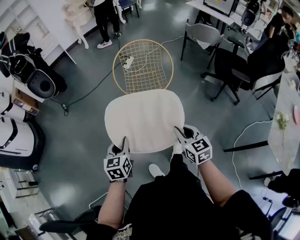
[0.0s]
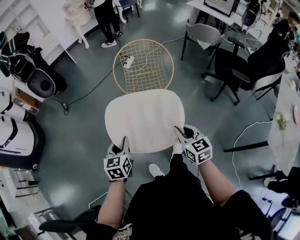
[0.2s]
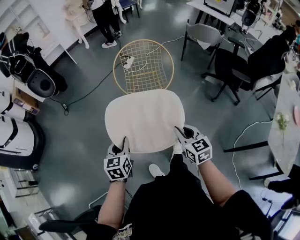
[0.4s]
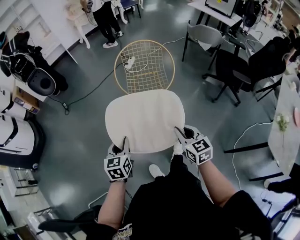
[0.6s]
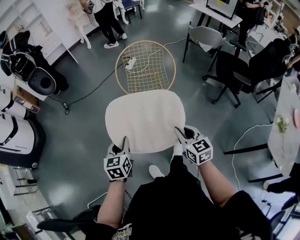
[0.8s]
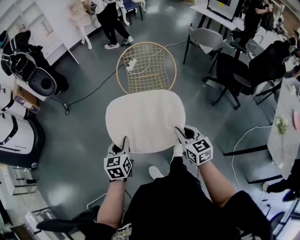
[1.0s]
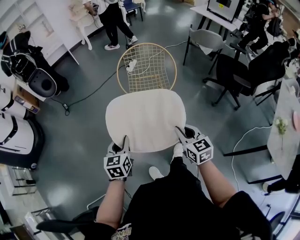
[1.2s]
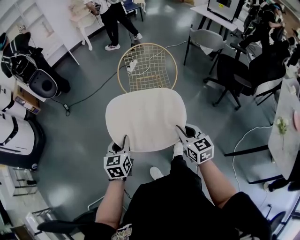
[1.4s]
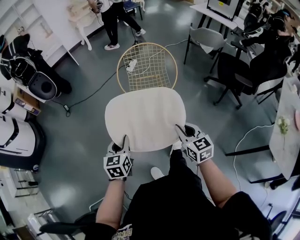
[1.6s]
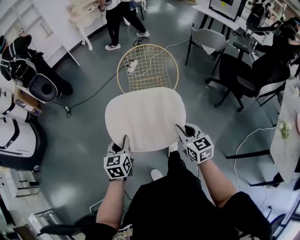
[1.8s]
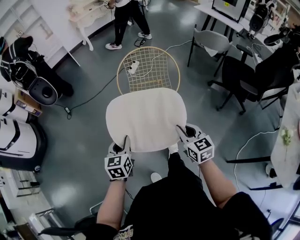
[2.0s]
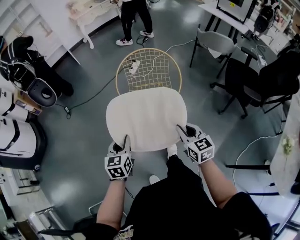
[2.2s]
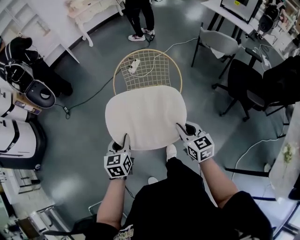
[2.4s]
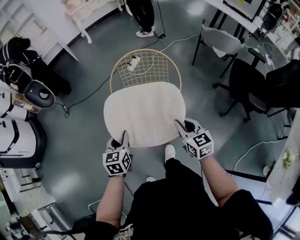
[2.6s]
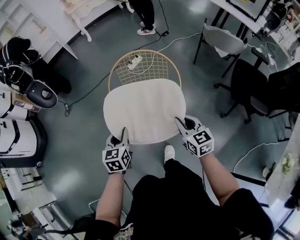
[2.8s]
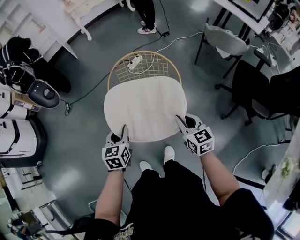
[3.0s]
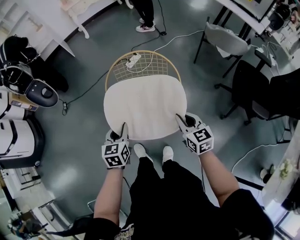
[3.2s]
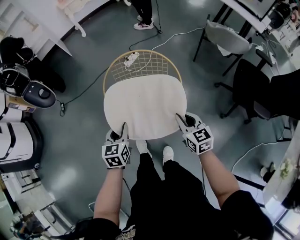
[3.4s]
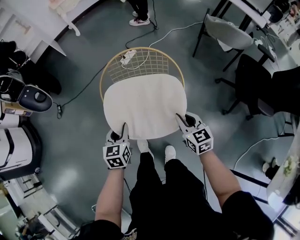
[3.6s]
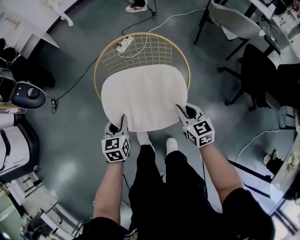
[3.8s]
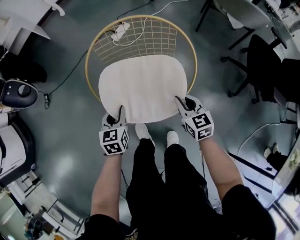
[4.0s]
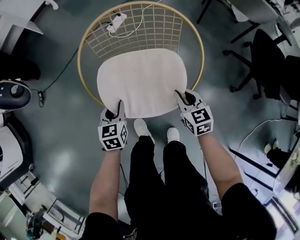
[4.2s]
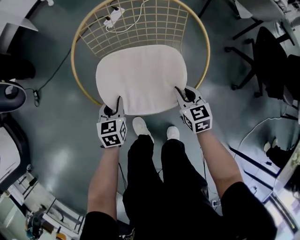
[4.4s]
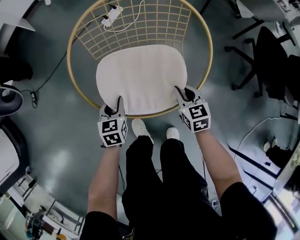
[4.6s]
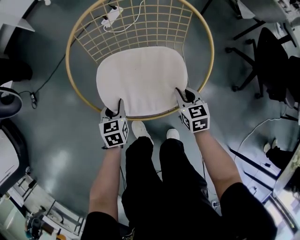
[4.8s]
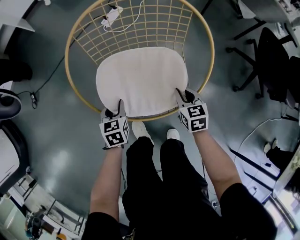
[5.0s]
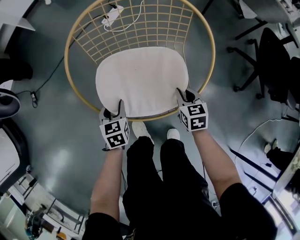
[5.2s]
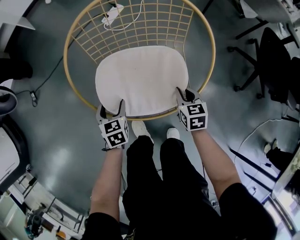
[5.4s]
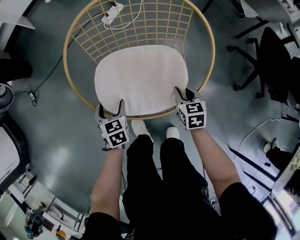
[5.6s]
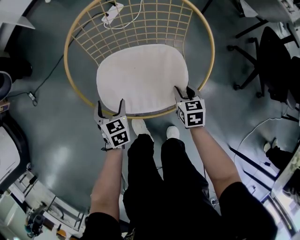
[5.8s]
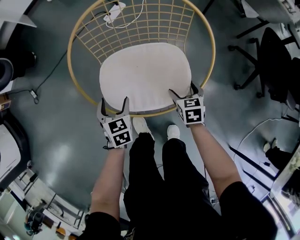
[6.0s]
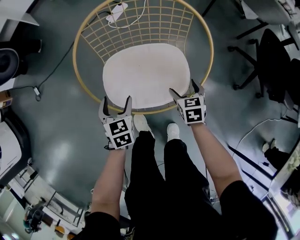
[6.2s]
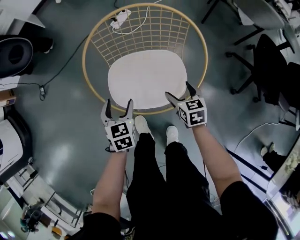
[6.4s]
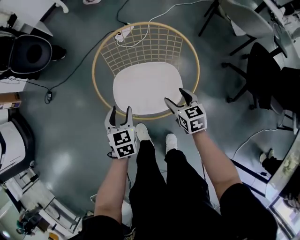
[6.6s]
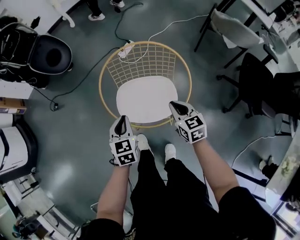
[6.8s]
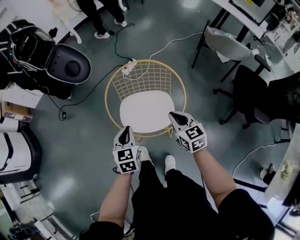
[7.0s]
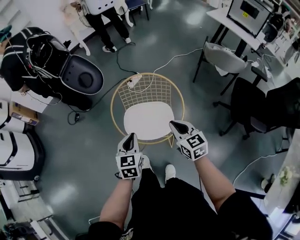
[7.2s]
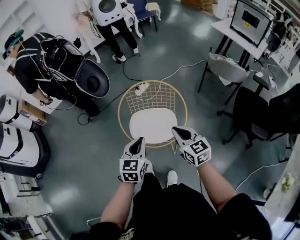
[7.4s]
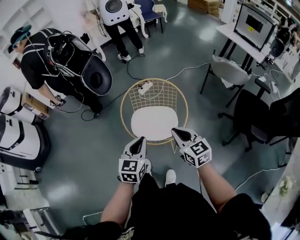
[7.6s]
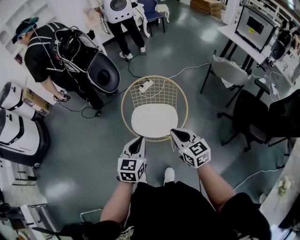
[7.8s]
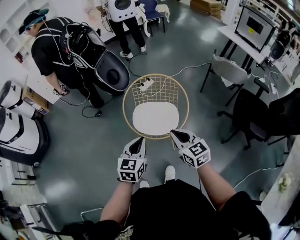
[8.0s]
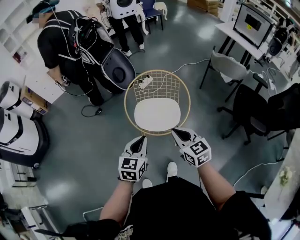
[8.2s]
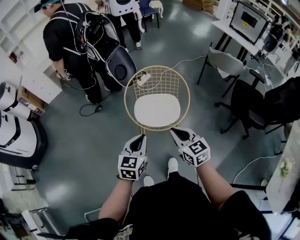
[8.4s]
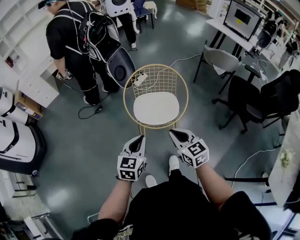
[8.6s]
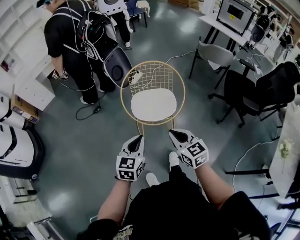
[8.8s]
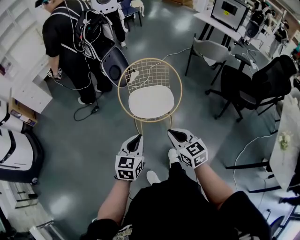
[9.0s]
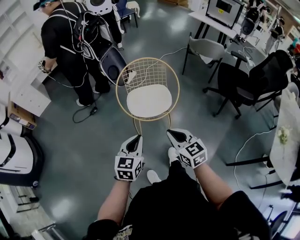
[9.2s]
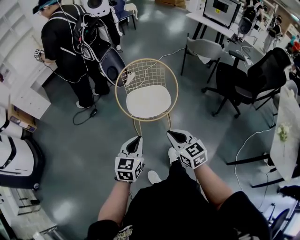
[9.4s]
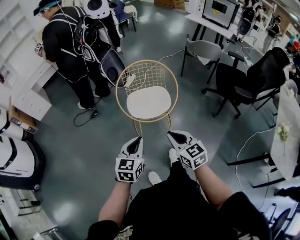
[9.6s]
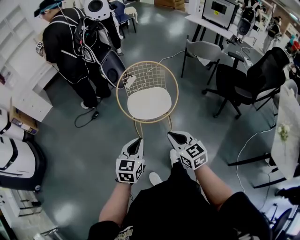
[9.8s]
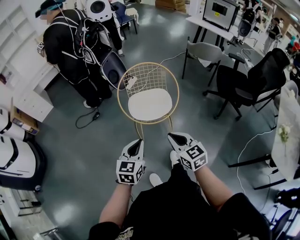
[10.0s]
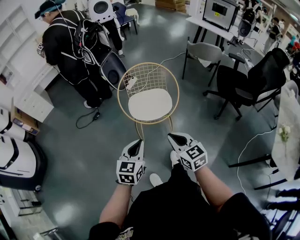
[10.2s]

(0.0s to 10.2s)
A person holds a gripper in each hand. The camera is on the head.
0.0s - 1.4s: The grippers stay close to where they were, moving slightly.
1.4s - 3.0s: The two grippers go roughly 35 cm forward and to the right.
3.0s - 4.4s: The grippers both shift downward and forward by some 35 cm.
4.4s - 5.8s: The left gripper opens its fingers; the right gripper travels downward by approximately 5 cm.
5.8s - 7.2s: Both grippers travel together upward, some 40 cm. The left gripper swivels roughly 20 degrees, and closes, while the right gripper turns by about 30 degrees, and opens, then closes once more.
7.2s - 8.8s: Both grippers travel together backward and to the left, roughly 25 cm.
8.8s - 10.2s: Both grippers move backward, roughly 5 cm.

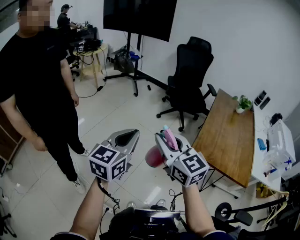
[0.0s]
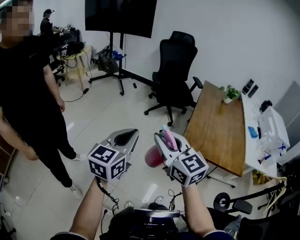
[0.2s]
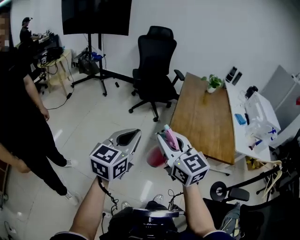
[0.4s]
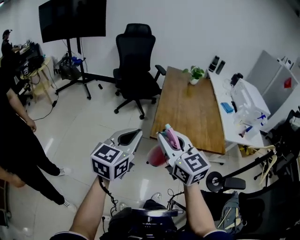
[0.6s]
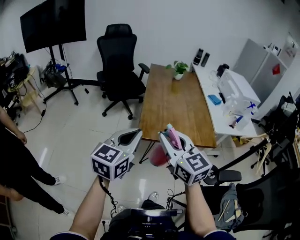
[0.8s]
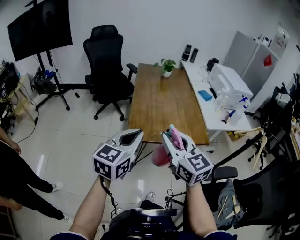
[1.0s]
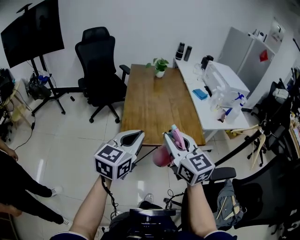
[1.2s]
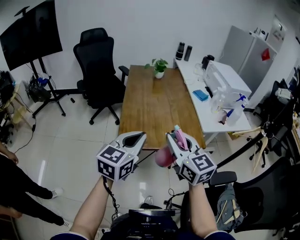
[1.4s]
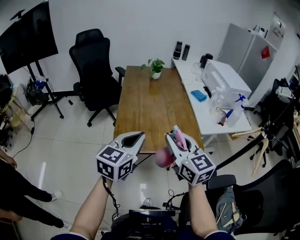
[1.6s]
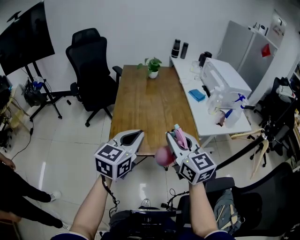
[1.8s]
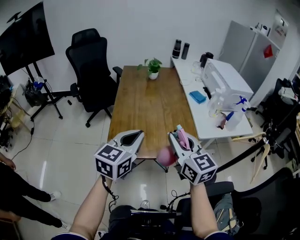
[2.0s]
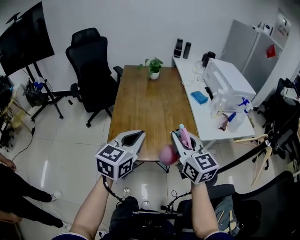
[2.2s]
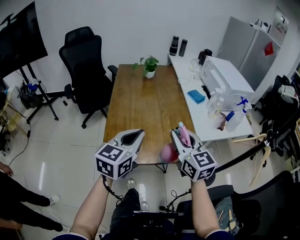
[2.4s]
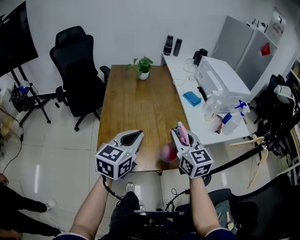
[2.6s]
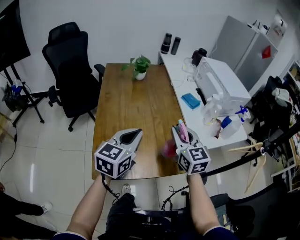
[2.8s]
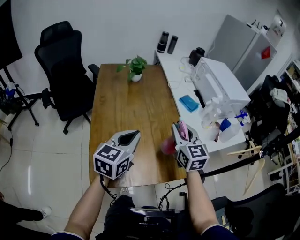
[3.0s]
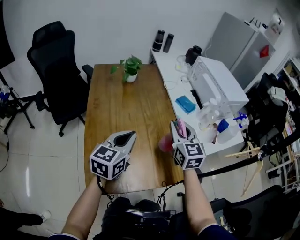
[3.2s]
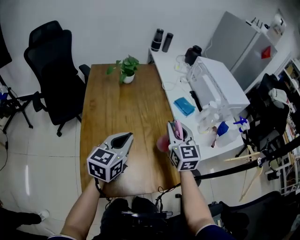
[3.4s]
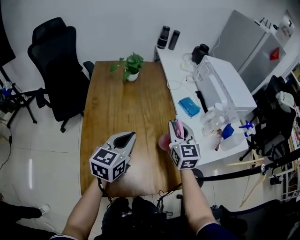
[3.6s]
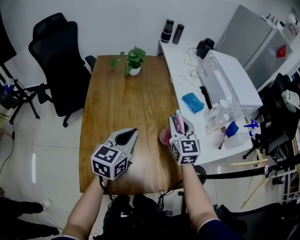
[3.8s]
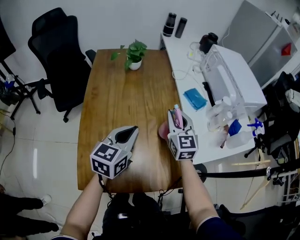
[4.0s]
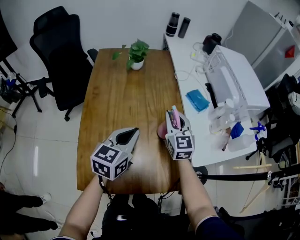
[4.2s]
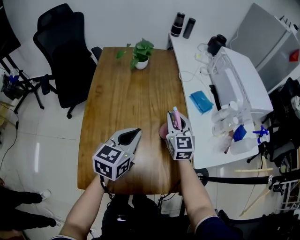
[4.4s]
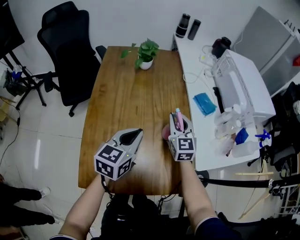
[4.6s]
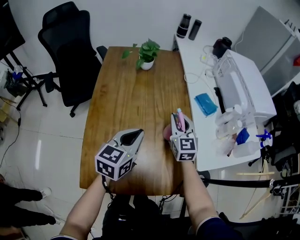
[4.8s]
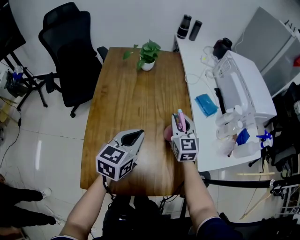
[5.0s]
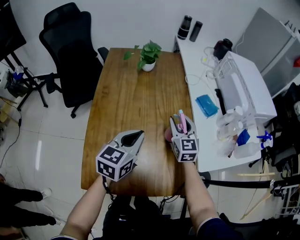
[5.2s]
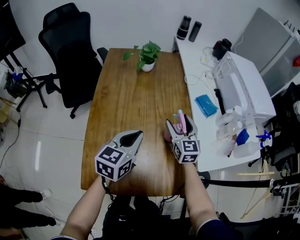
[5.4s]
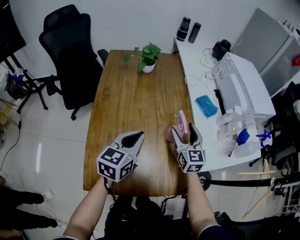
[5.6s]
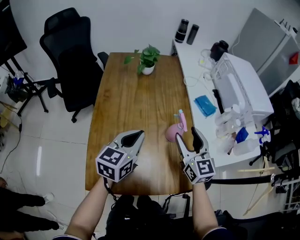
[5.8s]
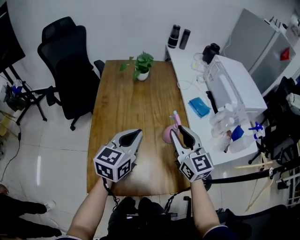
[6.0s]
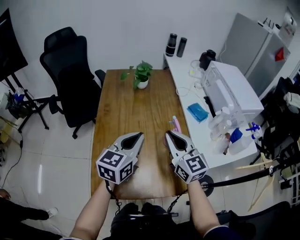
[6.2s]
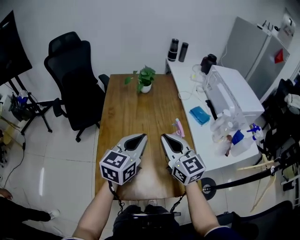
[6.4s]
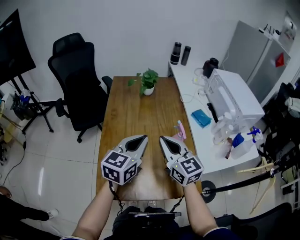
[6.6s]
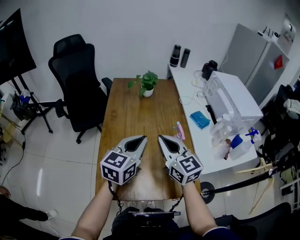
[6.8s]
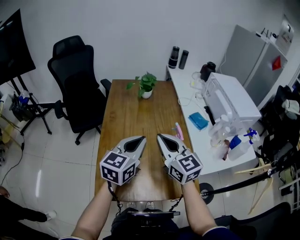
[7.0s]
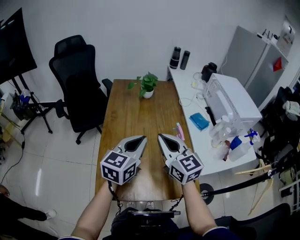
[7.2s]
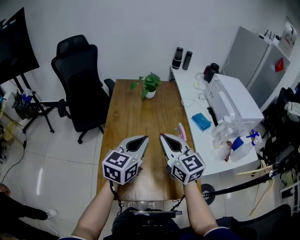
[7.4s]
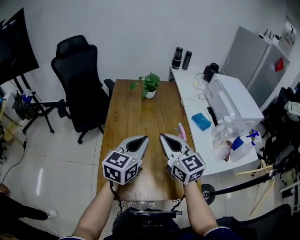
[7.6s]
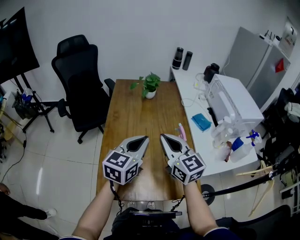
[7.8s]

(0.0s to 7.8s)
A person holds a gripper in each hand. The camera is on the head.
0.0s - 1.6s: The pair of grippers is taken about 50 cm. The left gripper turns by some 40 degrees, while the right gripper rotates about 40 degrees.
1.6s - 3.2s: Both grippers travel together forward, some 30 cm. The right gripper turns by about 20 degrees.
3.2s - 4.6s: The right gripper goes approximately 15 cm downward and forward. Meanwhile the left gripper goes approximately 10 cm downward and forward.
4.6s - 6.2s: The left gripper travels upward by about 10 cm. Meanwhile the right gripper heads backward and upward, covering approximately 15 cm, and opens, then closes again.
6.2s - 7.8s: The right gripper moves to the left, approximately 5 cm.

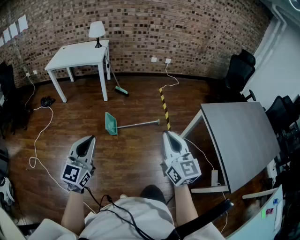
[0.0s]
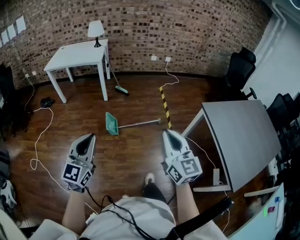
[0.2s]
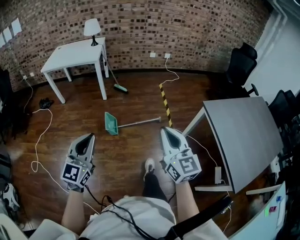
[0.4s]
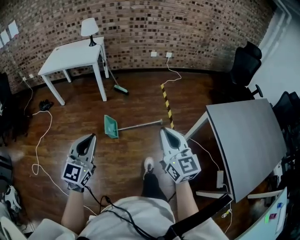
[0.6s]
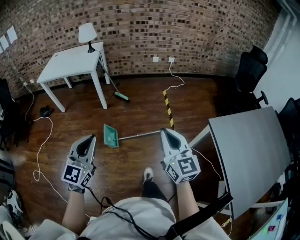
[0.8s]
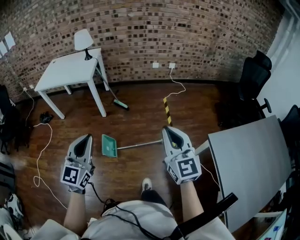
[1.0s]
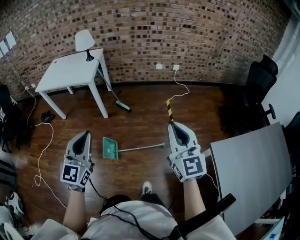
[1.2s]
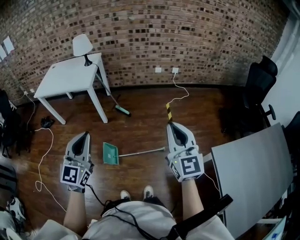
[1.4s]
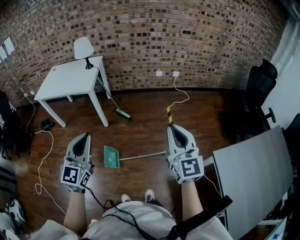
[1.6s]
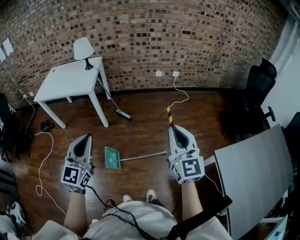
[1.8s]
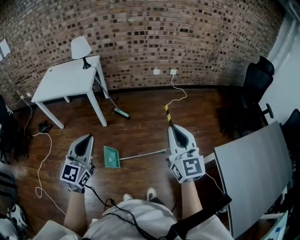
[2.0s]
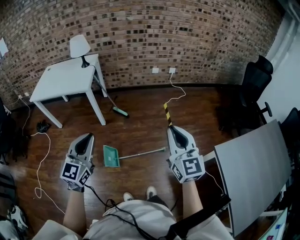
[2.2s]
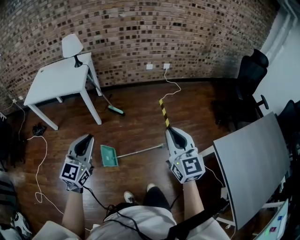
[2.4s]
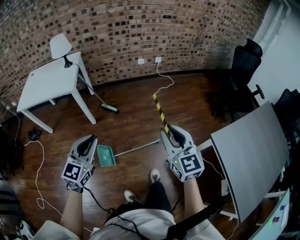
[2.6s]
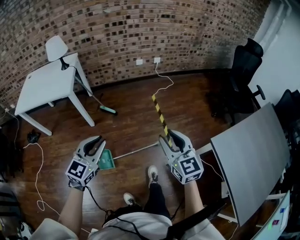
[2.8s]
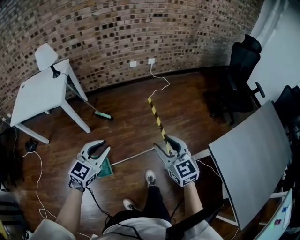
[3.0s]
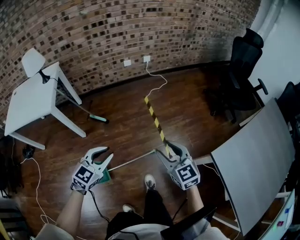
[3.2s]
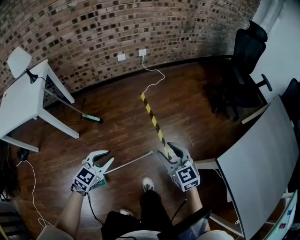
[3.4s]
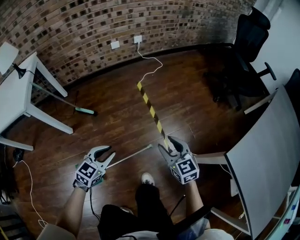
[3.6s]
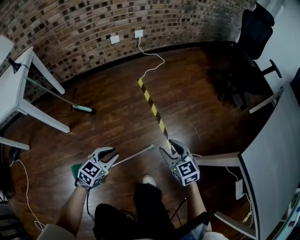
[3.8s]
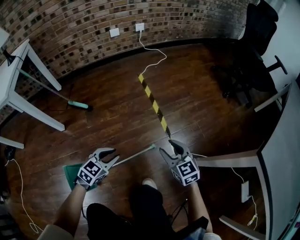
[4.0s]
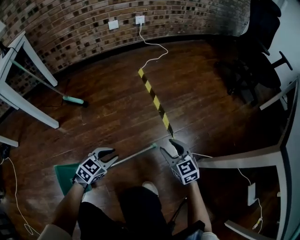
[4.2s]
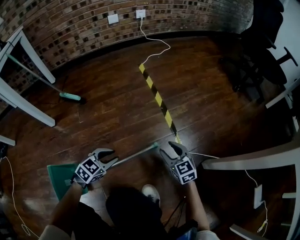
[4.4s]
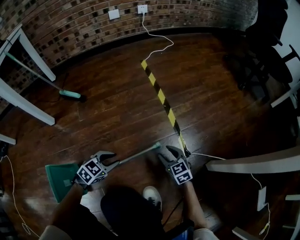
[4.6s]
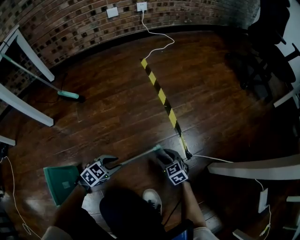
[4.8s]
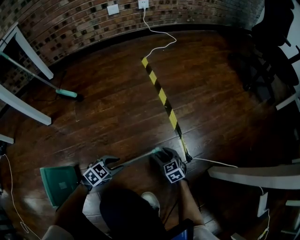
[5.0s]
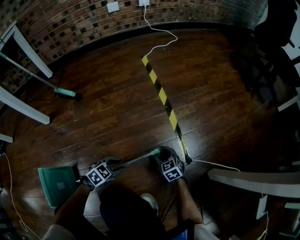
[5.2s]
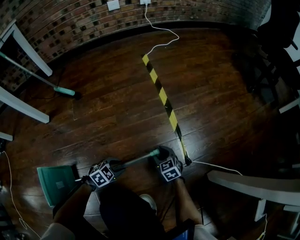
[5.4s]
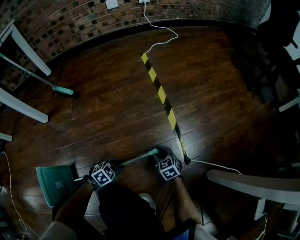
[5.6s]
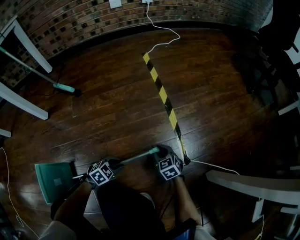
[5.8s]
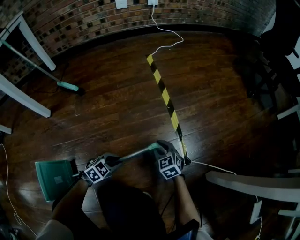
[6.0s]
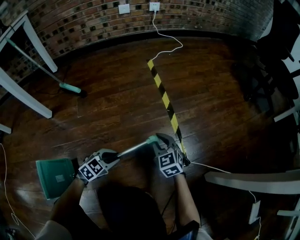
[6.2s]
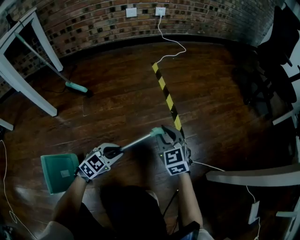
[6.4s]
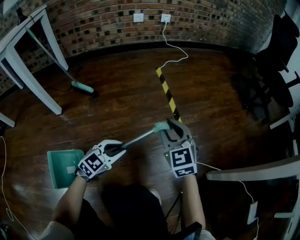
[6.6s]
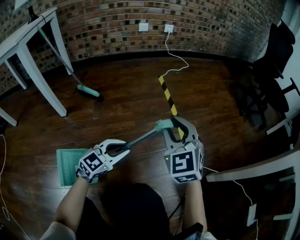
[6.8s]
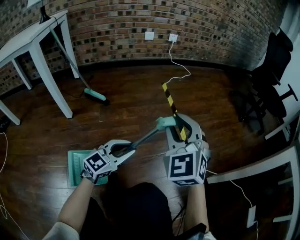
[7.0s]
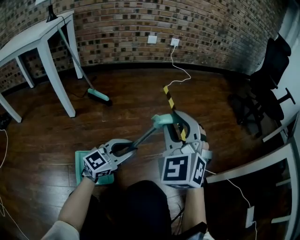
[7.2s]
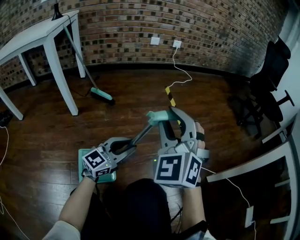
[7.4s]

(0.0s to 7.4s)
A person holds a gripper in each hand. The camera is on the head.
0.0s - 1.4s: The pair of grippers is taken forward, some 40 cm.
1.4s - 3.0s: The right gripper travels downward and forward by some 15 cm, swivels some 20 degrees, and opens up. The left gripper shifts about 25 cm forward, downward and to the right, rotates approximately 40 degrees, and opens up.
3.0s - 4.4s: The grippers both shift downward by about 70 cm. The left gripper swivels roughly 30 degrees.
4.4s - 6.0s: The right gripper heads downward, to the left and forward, covering roughly 15 cm, and closes its fingers. The left gripper goes some 15 cm downward.
6.0s - 7.4s: The left gripper travels upward by some 35 cm, and tilts its fingers roughly 50 degrees upward, while the right gripper moves upward, approximately 50 cm, and angles its fingers upward, by approximately 30 degrees.
